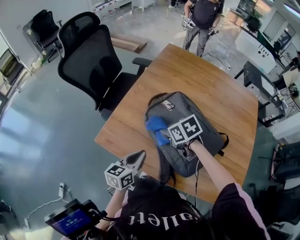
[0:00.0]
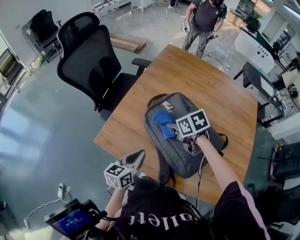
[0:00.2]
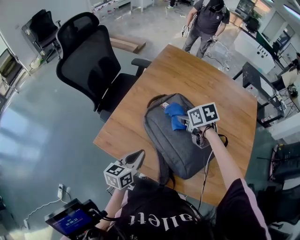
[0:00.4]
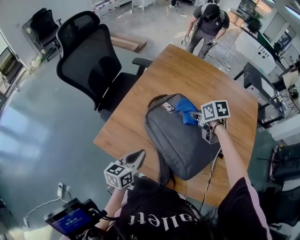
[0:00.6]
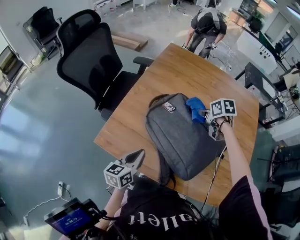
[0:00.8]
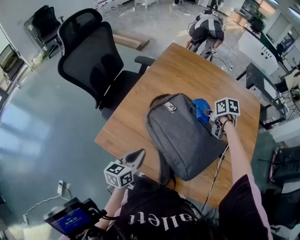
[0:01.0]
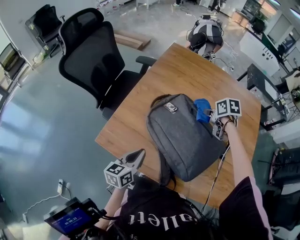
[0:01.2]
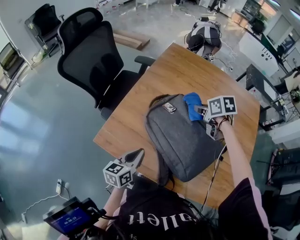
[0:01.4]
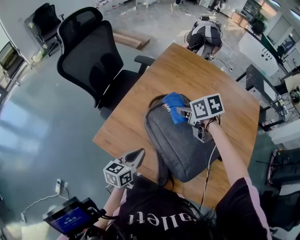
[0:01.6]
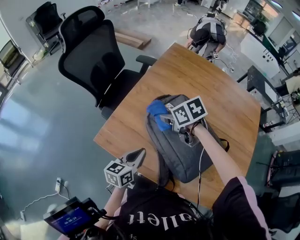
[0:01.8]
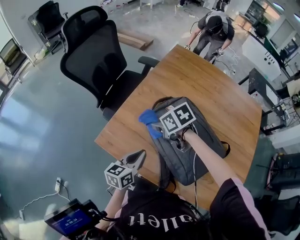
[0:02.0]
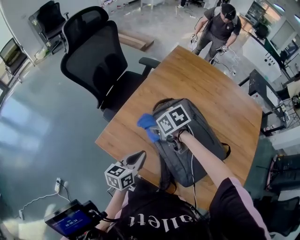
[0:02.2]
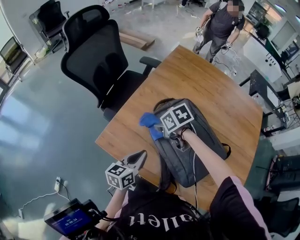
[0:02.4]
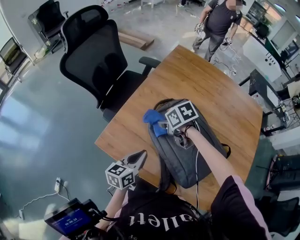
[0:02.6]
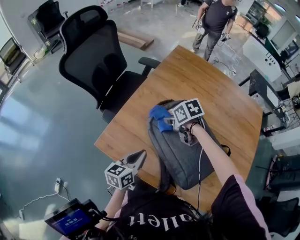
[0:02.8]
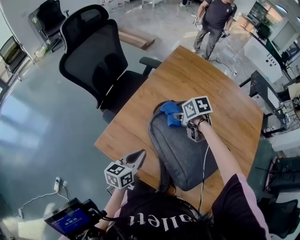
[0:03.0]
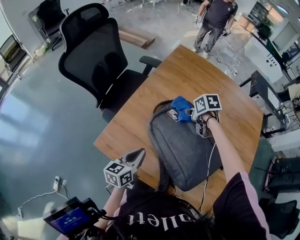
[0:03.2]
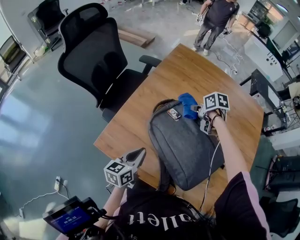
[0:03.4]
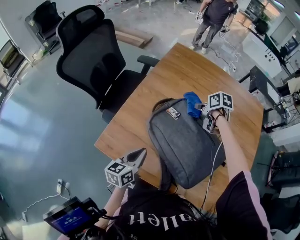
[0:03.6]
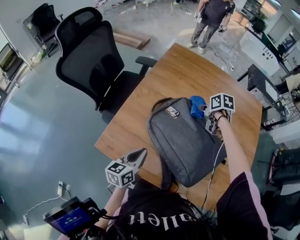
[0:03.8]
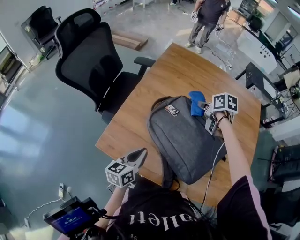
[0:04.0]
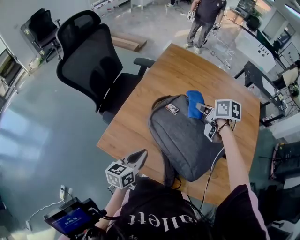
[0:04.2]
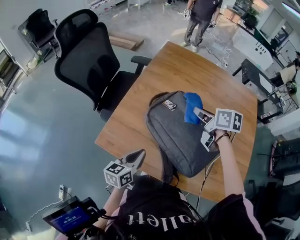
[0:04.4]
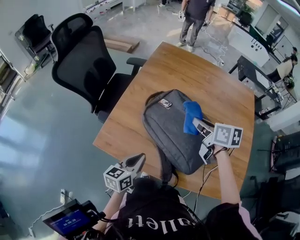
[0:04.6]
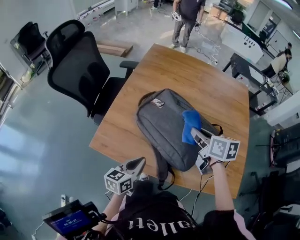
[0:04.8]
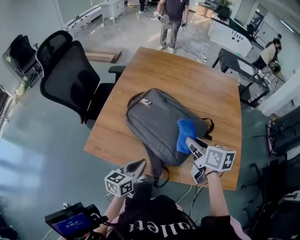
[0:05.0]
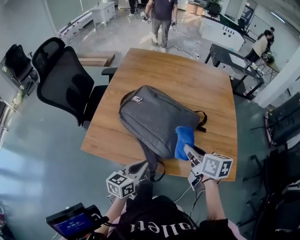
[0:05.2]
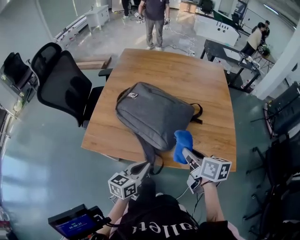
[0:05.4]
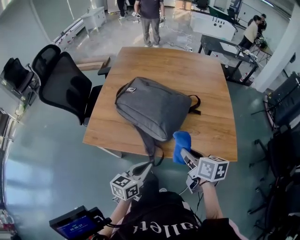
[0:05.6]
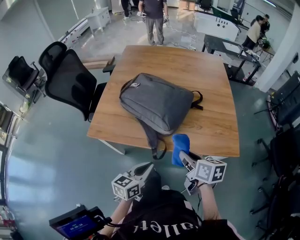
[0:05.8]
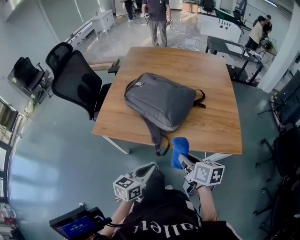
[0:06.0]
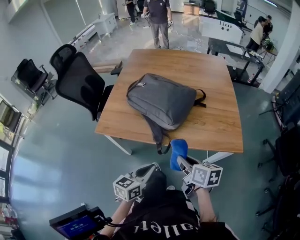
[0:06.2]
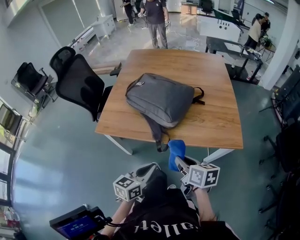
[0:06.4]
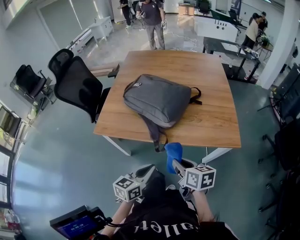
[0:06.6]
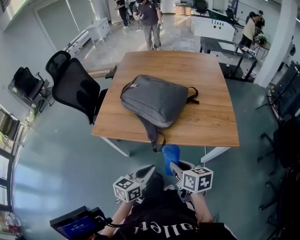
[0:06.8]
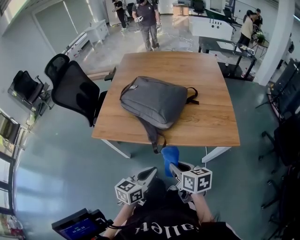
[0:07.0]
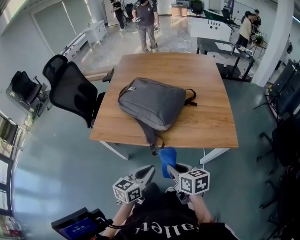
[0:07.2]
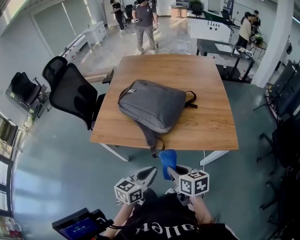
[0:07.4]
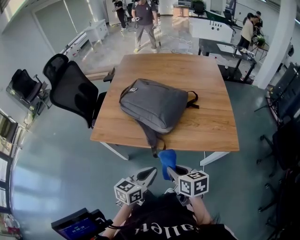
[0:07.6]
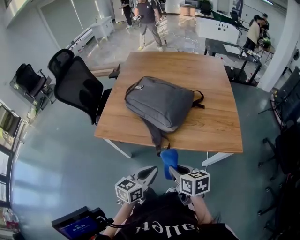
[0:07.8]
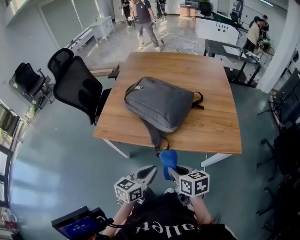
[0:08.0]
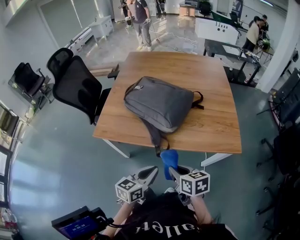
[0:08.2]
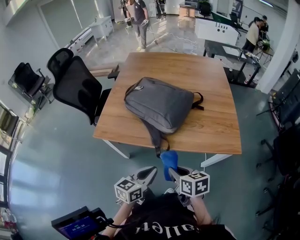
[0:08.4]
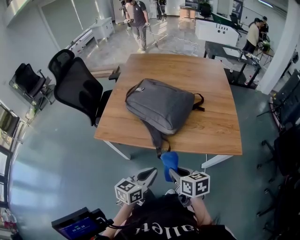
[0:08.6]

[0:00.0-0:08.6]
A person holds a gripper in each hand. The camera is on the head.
0.0 to 1.4 s: The right gripper is displaced to the right, forward and upward by approximately 20 cm.
1.4 to 2.8 s: The left gripper is displaced forward by about 5 cm, while the right gripper goes some 20 cm to the left and downward.
2.8 to 4.4 s: The right gripper moves to the right, upward and backward, roughly 20 cm, and changes its angle by roughly 40 degrees, while the left gripper moves backward, approximately 5 cm.
4.4 to 5.8 s: The left gripper moves backward and to the right, some 25 cm, and changes its angle by approximately 20 degrees; the right gripper moves backward, about 40 cm.
5.8 to 7.2 s: The left gripper travels backward by some 5 cm. The right gripper travels backward by roughly 10 cm.
7.2 to 8.6 s: The grippers move only a little.

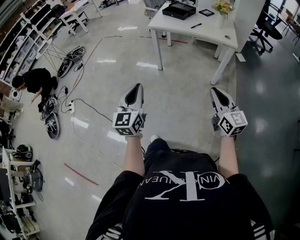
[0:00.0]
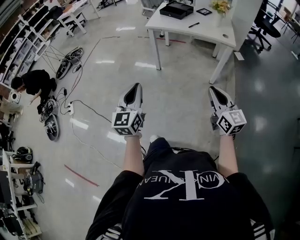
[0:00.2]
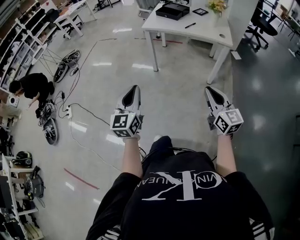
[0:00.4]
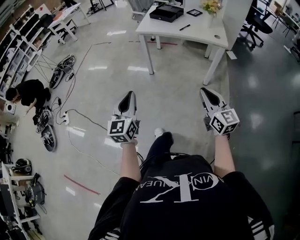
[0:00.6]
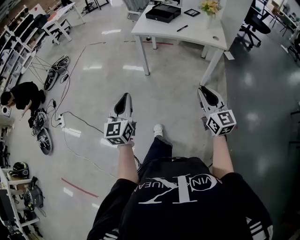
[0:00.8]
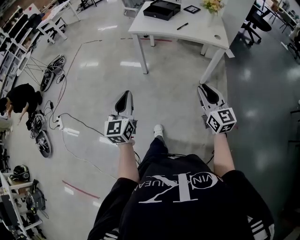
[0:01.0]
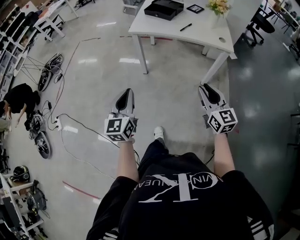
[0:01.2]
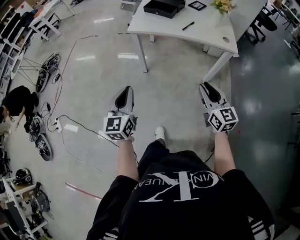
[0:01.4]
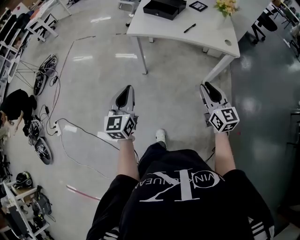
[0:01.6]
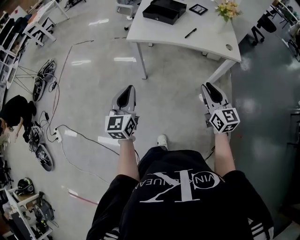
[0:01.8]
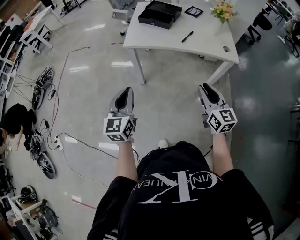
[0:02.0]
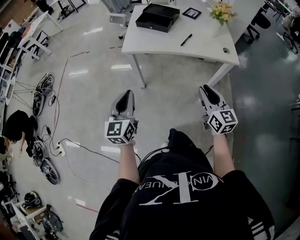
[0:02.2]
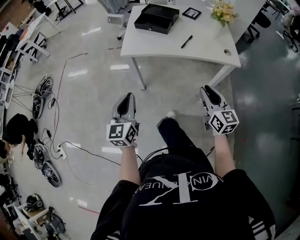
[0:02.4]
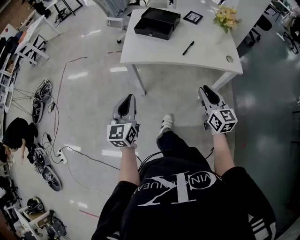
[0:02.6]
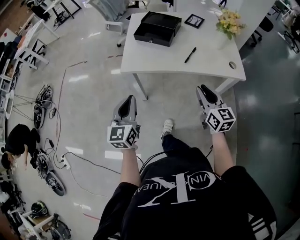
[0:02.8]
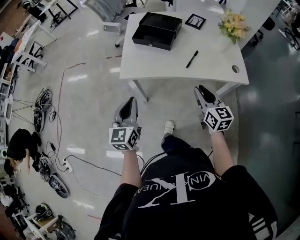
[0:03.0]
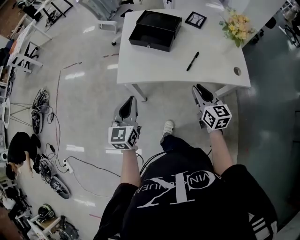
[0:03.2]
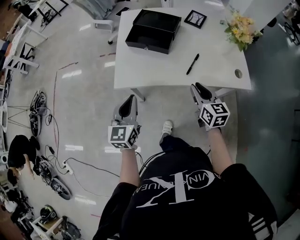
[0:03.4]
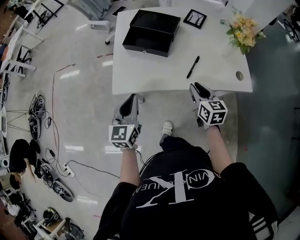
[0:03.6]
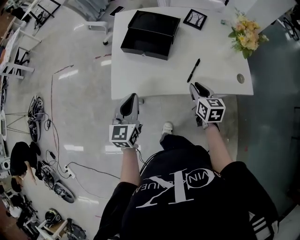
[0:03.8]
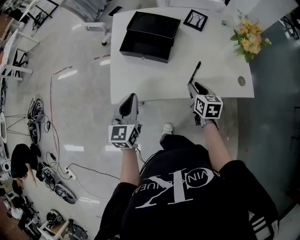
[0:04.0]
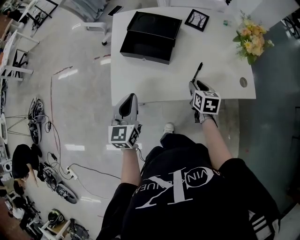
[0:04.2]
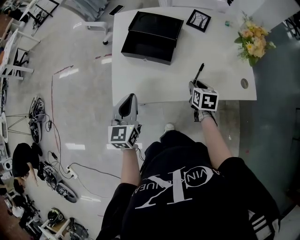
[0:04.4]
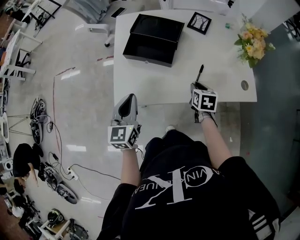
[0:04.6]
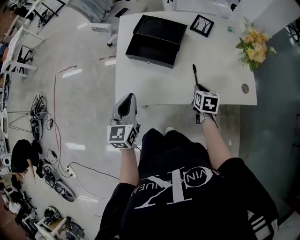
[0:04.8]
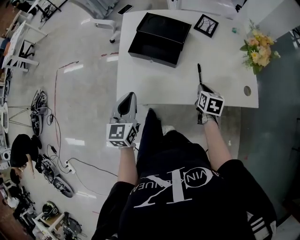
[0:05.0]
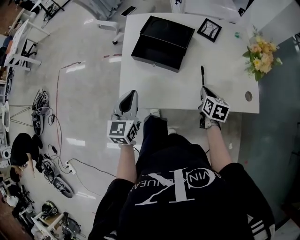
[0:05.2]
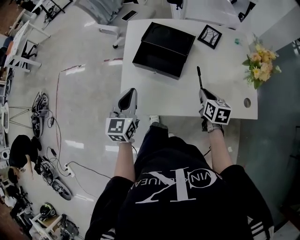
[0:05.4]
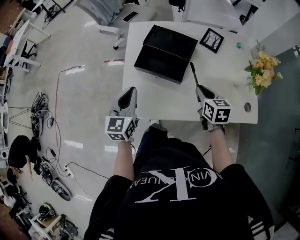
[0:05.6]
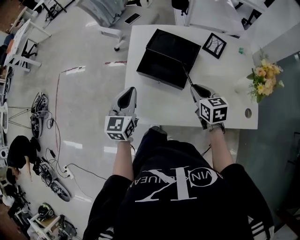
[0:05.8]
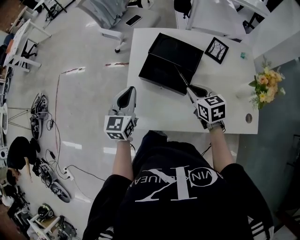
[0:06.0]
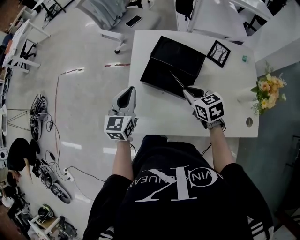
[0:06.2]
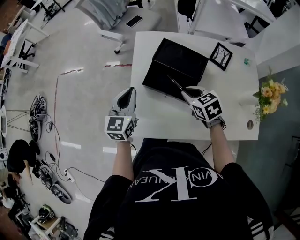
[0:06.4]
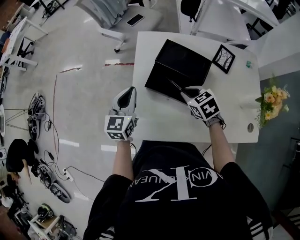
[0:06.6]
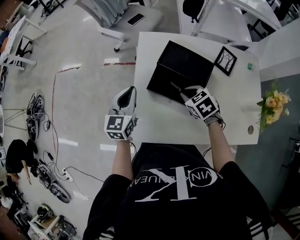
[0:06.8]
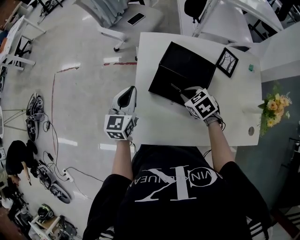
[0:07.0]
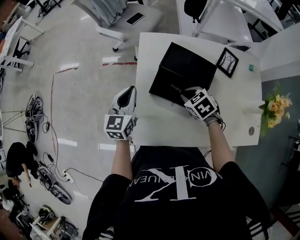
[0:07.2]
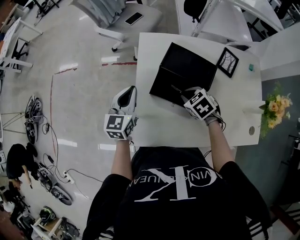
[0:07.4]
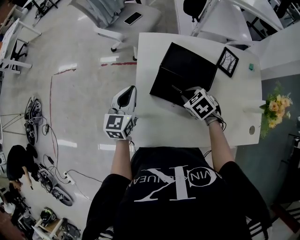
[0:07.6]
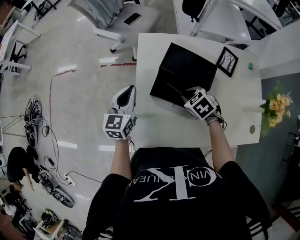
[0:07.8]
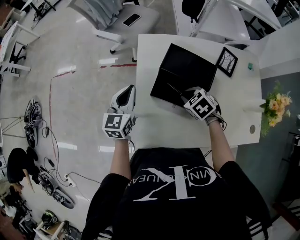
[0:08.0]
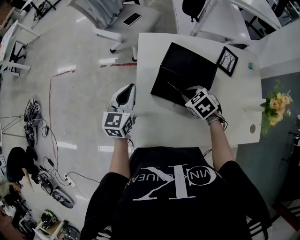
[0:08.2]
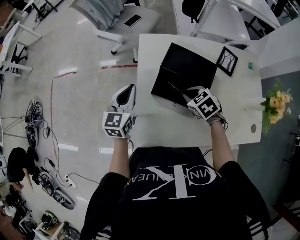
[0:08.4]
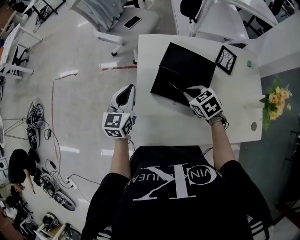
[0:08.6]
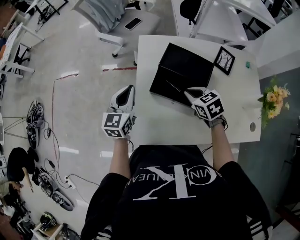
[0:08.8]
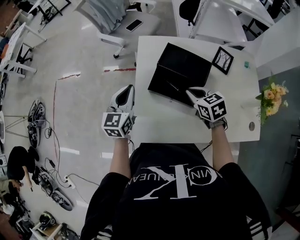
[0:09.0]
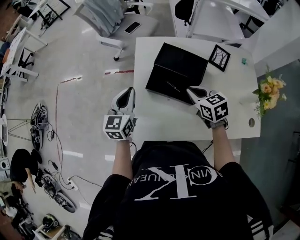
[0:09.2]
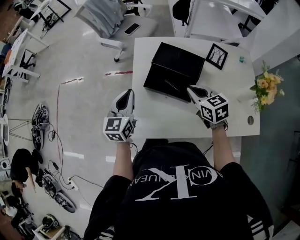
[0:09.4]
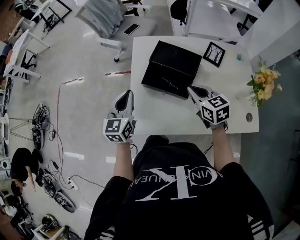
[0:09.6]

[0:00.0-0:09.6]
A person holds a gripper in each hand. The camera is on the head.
0.0 to 1.6 s: The two grippers go roughly 30 cm forward.
1.6 to 3.2 s: The grippers both shift forward by some 35 cm.
3.2 to 4.8 s: The right gripper travels forward and downward by some 20 cm, and points its fingers approximately 30 degrees further downward. Meanwhile the left gripper is displaced forward by about 15 cm.
4.8 to 6.4 s: The right gripper travels to the left, forward and upward by some 25 cm, and rotates about 40 degrees. Meanwhile the left gripper goes some 20 cm forward.
6.4 to 8.0 s: The left gripper shifts roughly 5 cm forward, while the right gripper goes roughly 5 cm downward, and changes its angle by roughly 20 degrees.
8.0 to 9.6 s: The left gripper is displaced backward by some 10 cm. Meanwhile the right gripper goes roughly 15 cm upward, backward and to the right, and angles its fingers upward, by approximately 30 degrees.

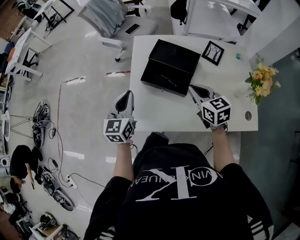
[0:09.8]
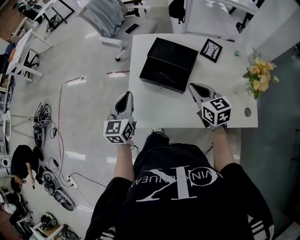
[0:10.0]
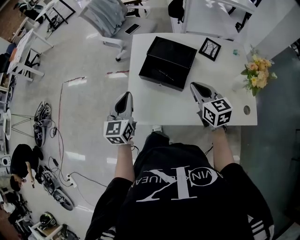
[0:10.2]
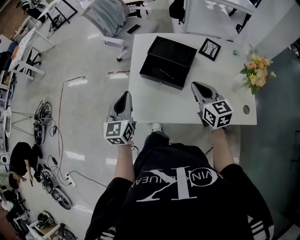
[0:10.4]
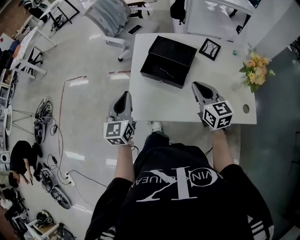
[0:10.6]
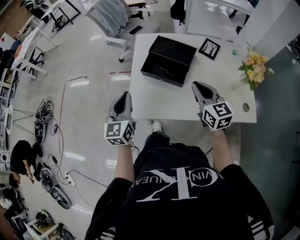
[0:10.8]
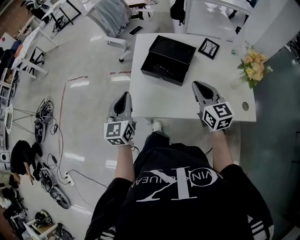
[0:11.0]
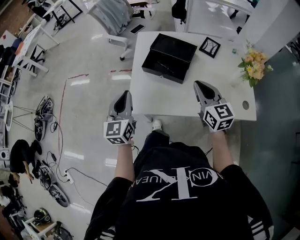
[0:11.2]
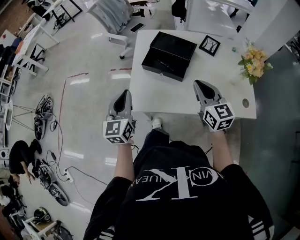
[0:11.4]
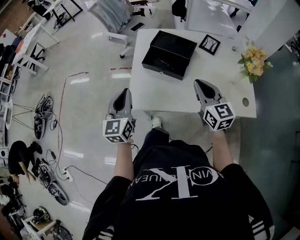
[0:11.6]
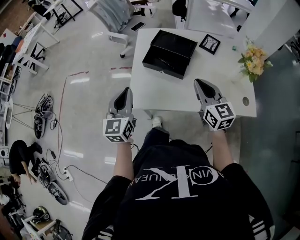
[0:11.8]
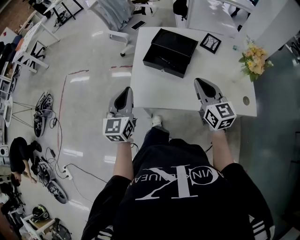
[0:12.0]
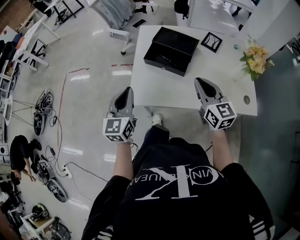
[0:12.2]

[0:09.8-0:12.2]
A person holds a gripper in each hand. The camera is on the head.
9.8 to 11.0 s: The left gripper is displaced backward by about 10 cm, while the right gripper shifts roughly 10 cm backward and upward.
11.0 to 12.2 s: The grippers move only a little.

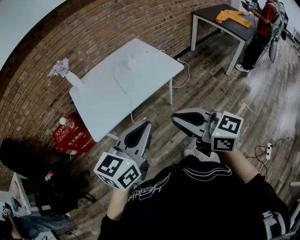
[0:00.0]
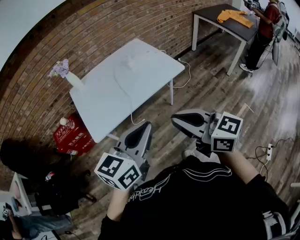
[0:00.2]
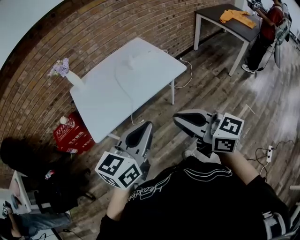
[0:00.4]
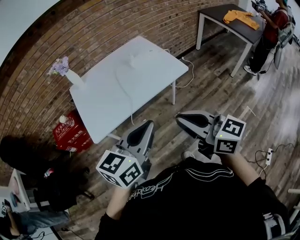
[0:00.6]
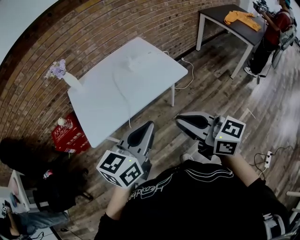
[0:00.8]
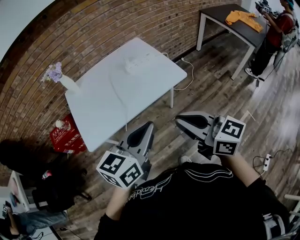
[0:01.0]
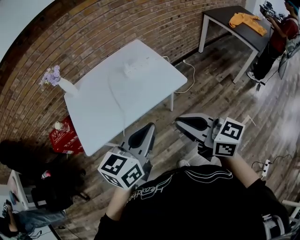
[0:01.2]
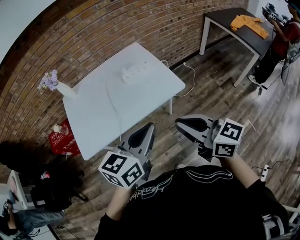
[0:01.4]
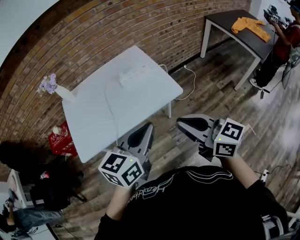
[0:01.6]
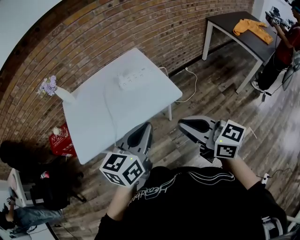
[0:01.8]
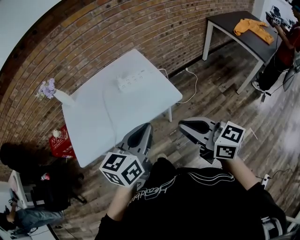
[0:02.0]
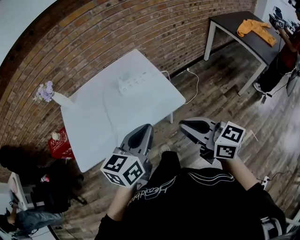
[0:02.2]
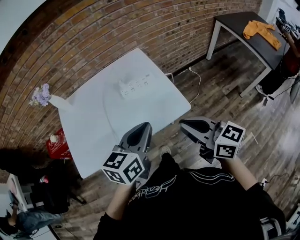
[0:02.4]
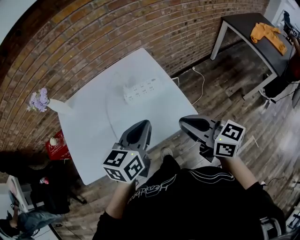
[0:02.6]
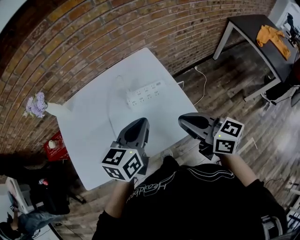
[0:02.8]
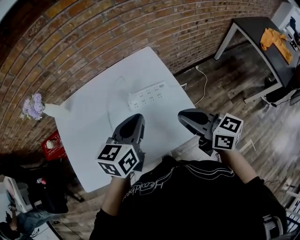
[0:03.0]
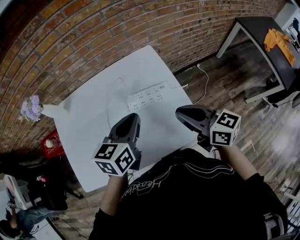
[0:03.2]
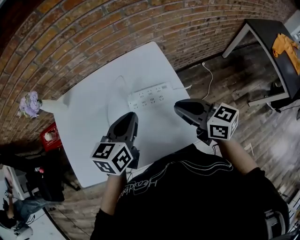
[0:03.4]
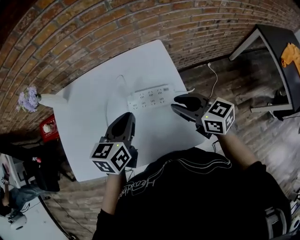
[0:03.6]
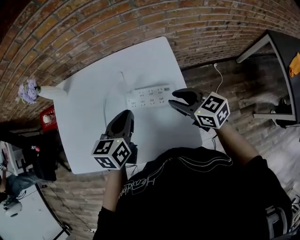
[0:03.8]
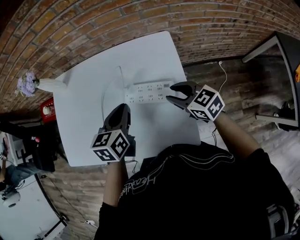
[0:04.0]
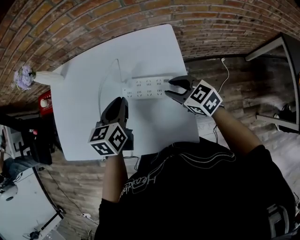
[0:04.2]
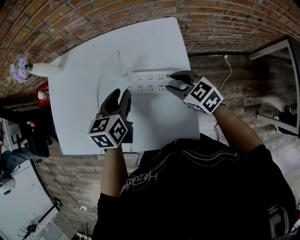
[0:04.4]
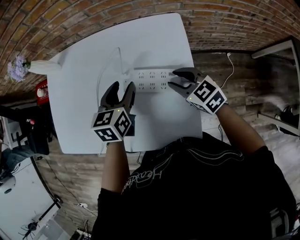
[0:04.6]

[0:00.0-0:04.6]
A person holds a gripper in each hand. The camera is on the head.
0.0 to 1.6 s: Both grippers travel together forward and to the right, about 25 cm.
1.6 to 3.0 s: The grippers both shift forward by about 35 cm.
3.0 to 4.6 s: The two grippers go about 20 cm downward. The left gripper rotates roughly 30 degrees, and opens up. Meanwhile the right gripper swivels some 50 degrees, and opens up.
